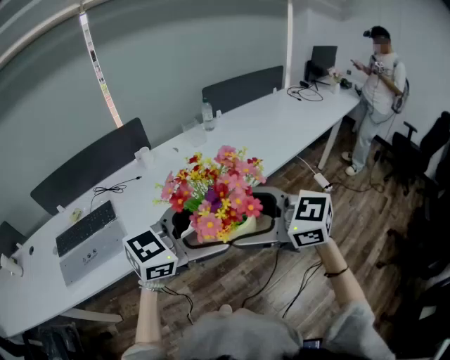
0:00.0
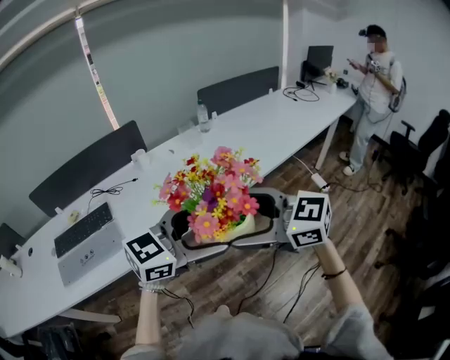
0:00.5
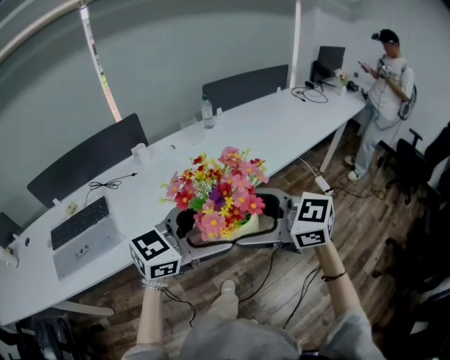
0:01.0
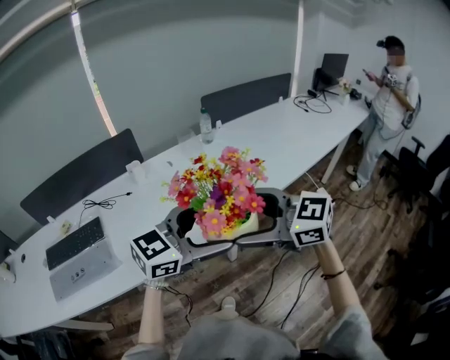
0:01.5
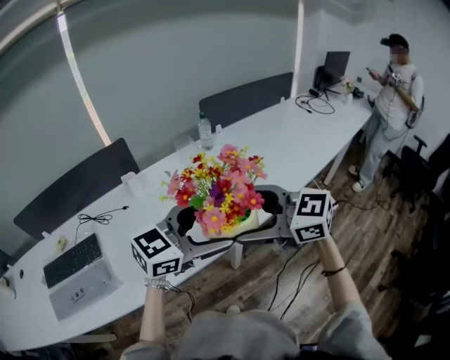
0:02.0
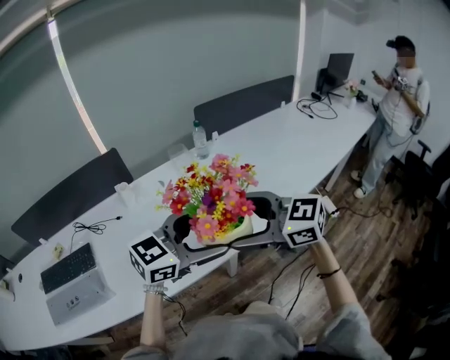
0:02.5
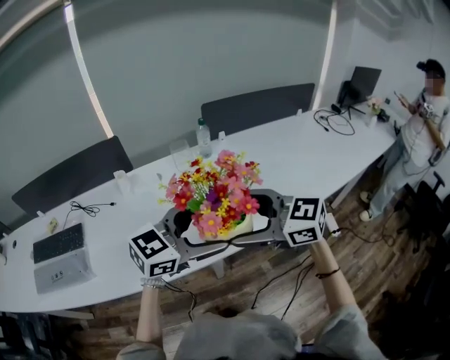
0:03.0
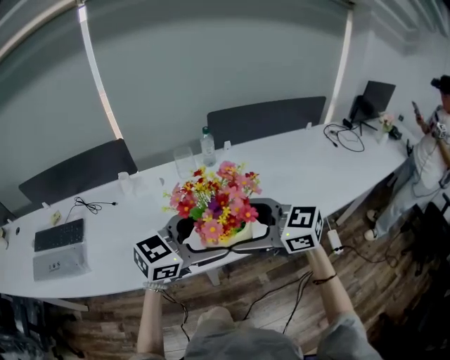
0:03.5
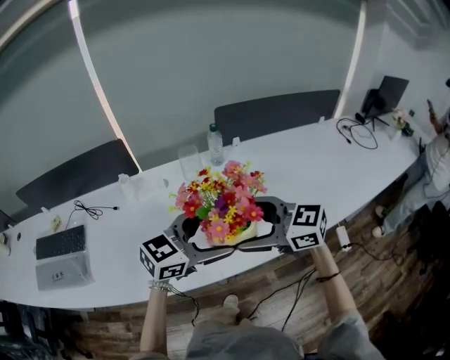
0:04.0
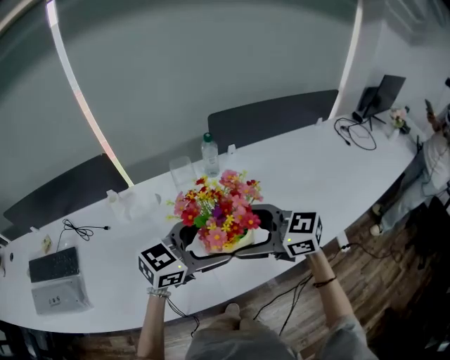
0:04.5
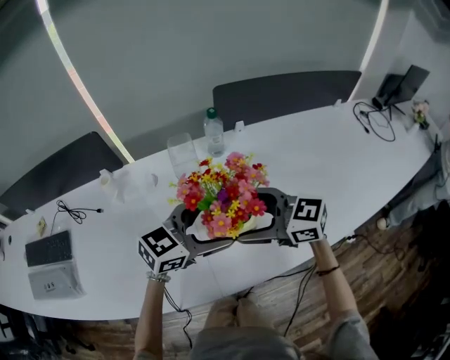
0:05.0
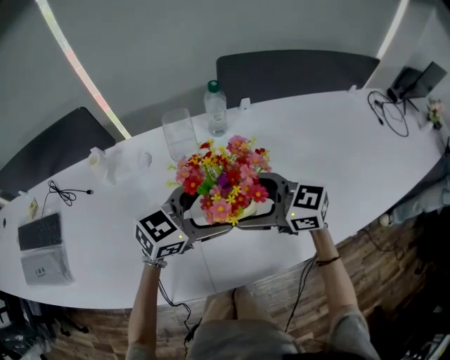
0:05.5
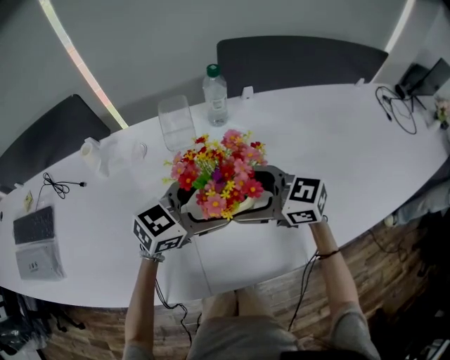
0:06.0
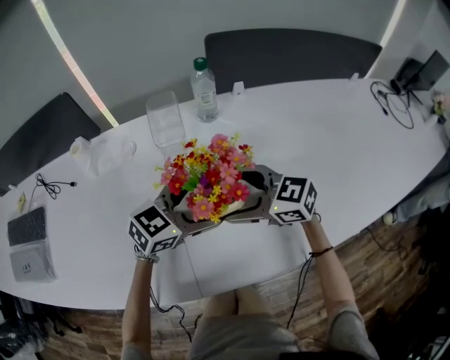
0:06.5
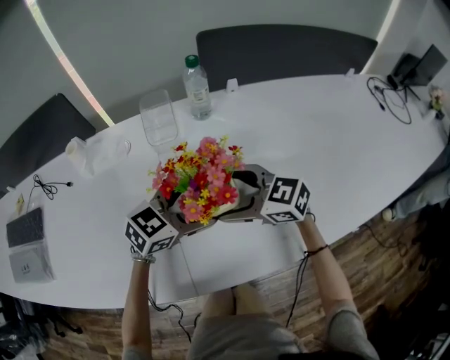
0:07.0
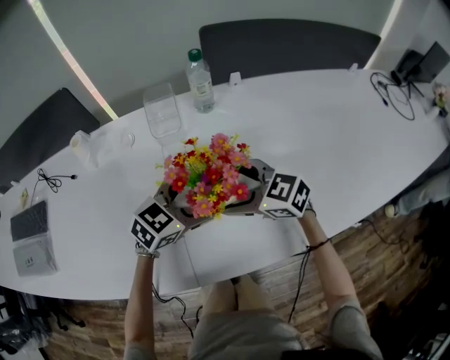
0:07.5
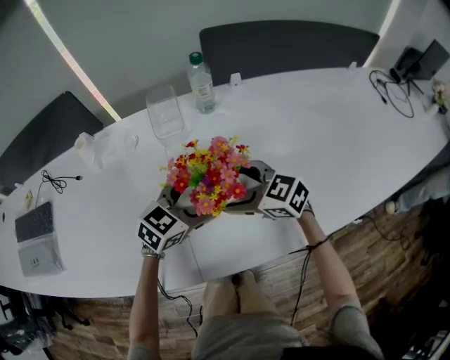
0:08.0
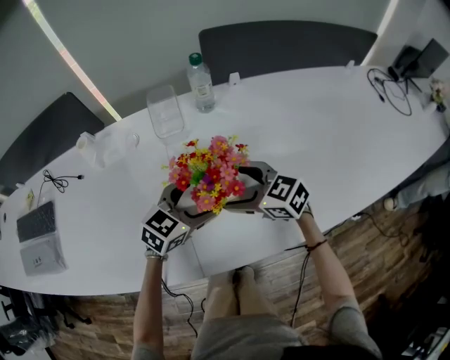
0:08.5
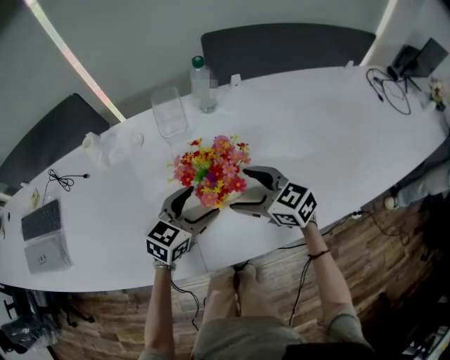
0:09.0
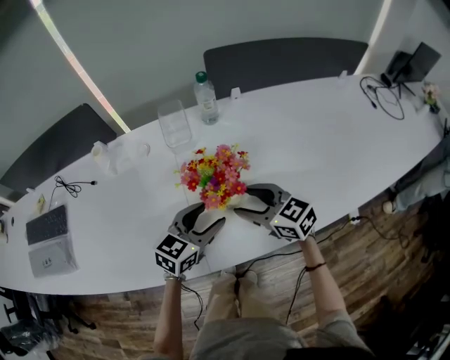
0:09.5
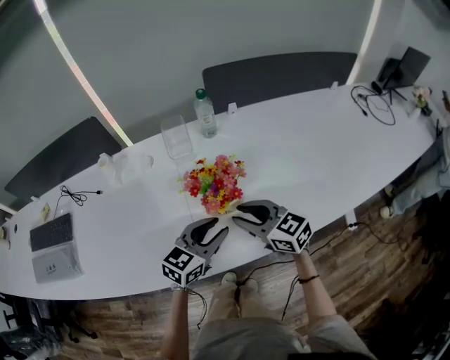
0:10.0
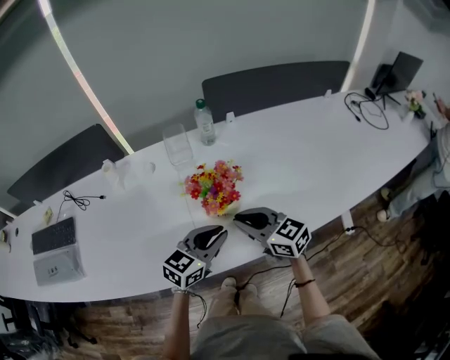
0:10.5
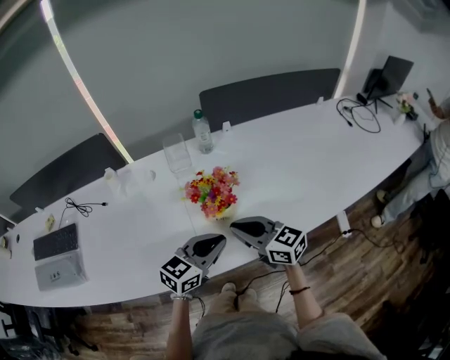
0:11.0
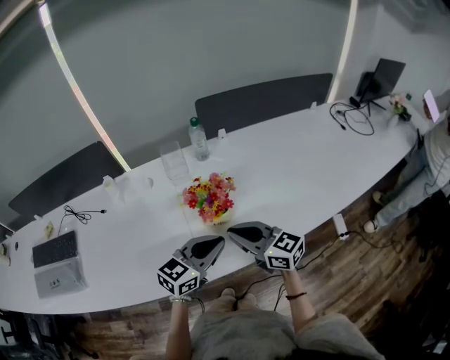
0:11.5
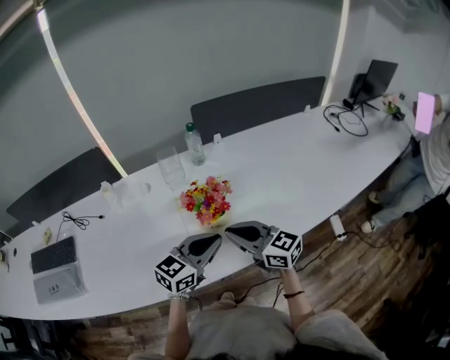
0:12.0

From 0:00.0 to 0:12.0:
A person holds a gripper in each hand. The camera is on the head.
From 0:00.0 to 0:02.0: The right gripper changes place by approximately 20 cm, while the left gripper changes place by roughly 20 cm.
From 0:02.0 to 0:04.0: The right gripper ends up approximately 20 cm from where it was. The left gripper changes place by roughly 20 cm.
From 0:04.0 to 0:06.0: Both grippers move downward, some 20 cm.
From 0:06.0 to 0:08.0: Both grippers move downward, about 5 cm.
From 0:08.0 to 0:10.0: Both grippers travel together backward and upward, some 10 cm. The right gripper closes up. Meanwhile the left gripper closes.
From 0:10.0 to 0:12.0: The two grippers go some 5 cm upward.

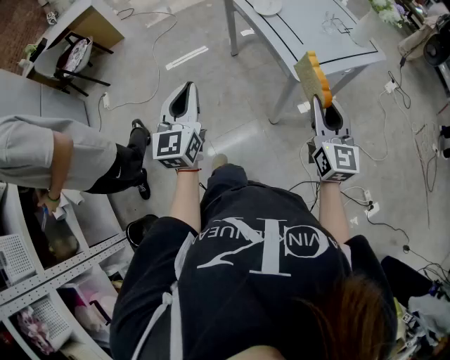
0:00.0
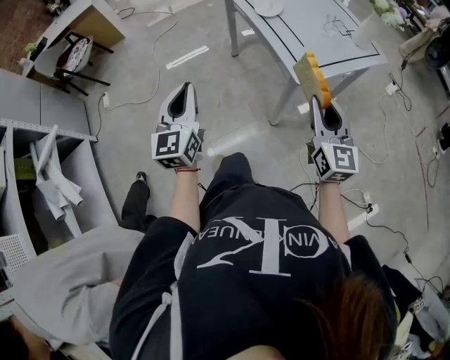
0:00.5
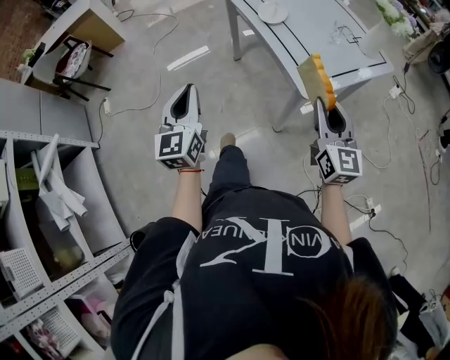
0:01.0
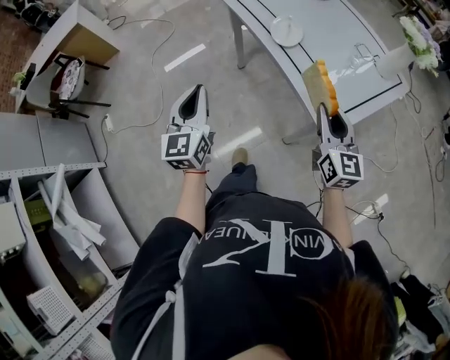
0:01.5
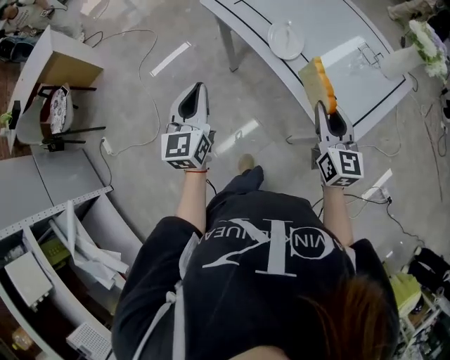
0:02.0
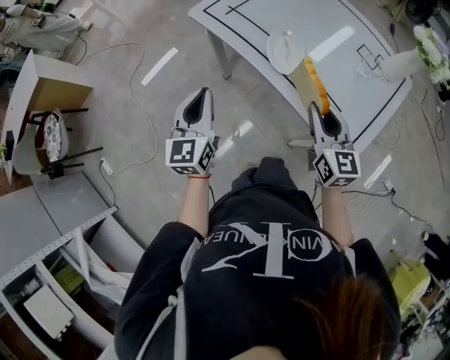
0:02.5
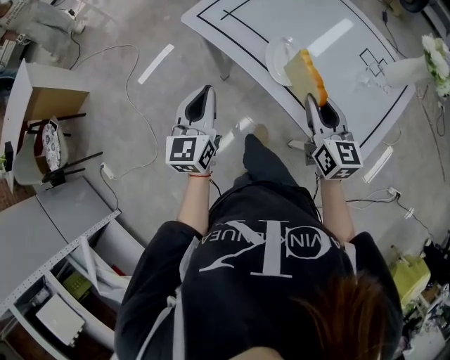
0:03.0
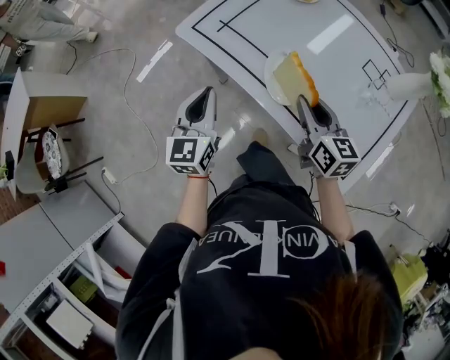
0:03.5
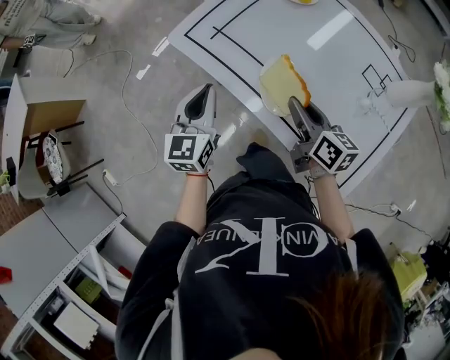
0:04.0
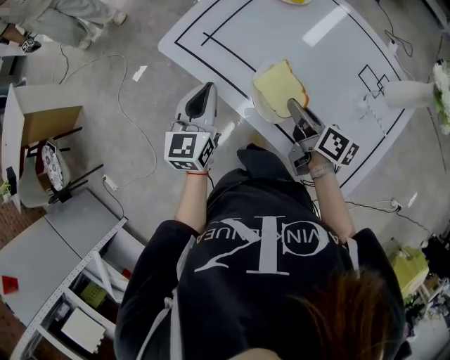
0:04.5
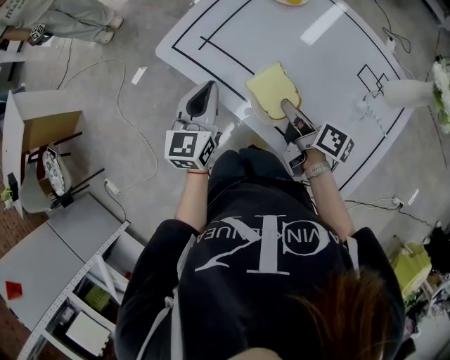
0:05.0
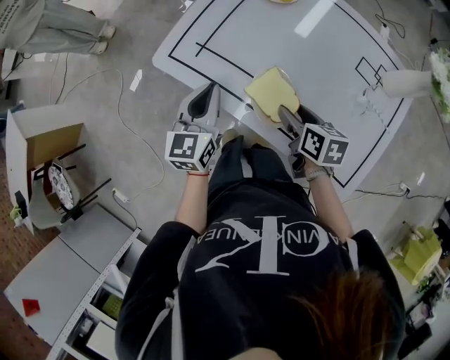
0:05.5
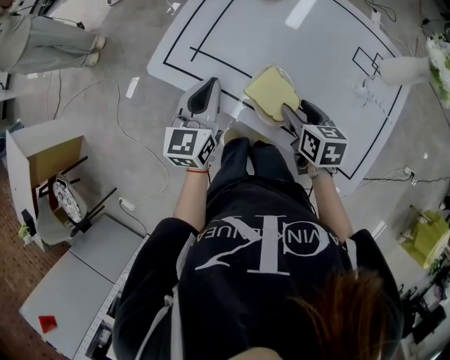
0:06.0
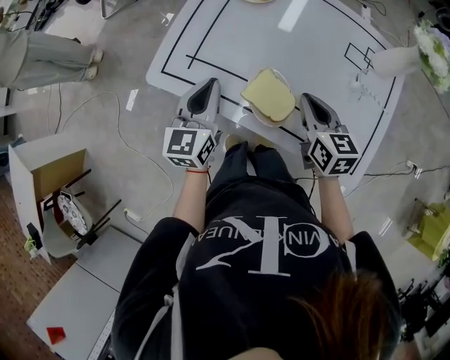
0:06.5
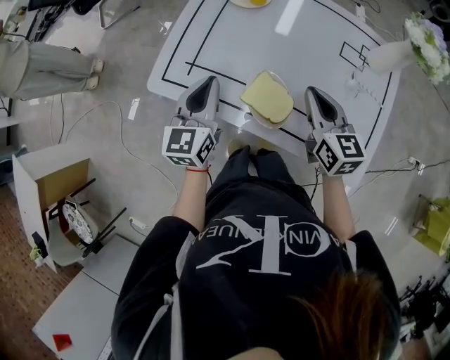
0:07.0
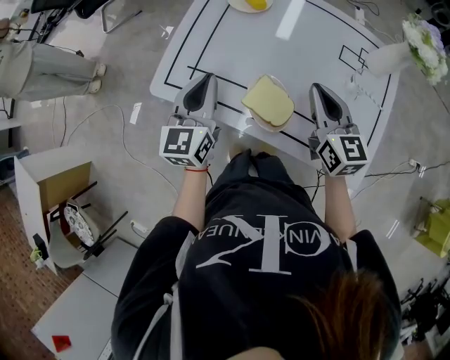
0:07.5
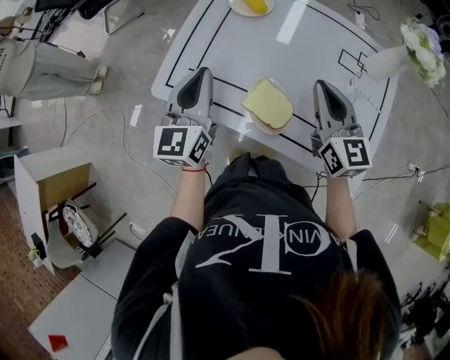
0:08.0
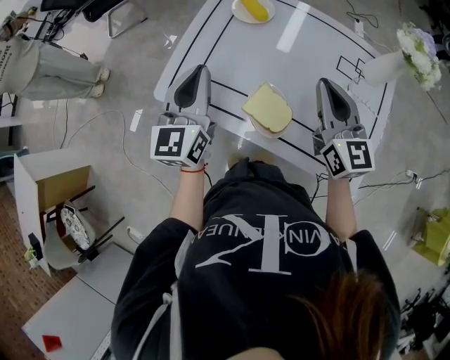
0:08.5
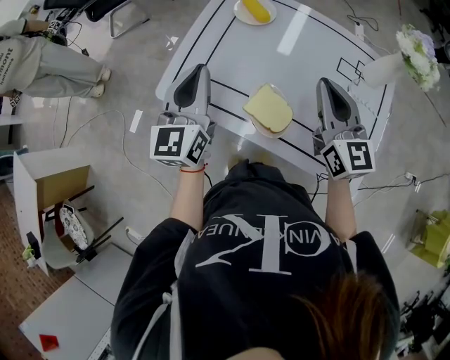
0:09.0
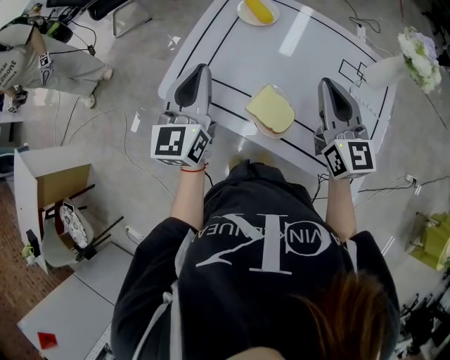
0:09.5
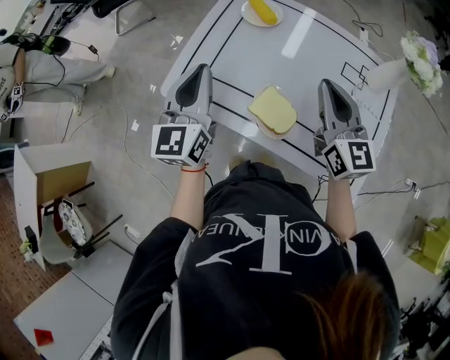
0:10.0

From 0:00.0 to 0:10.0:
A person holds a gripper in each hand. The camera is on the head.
From 0:00.0 to 0:02.0: The grippers both shift forward by approximately 35 cm.
From 0:02.0 to 0:04.0: Both grippers travel together forward, about 25 cm. The right gripper turns by some 40 degrees.
From 0:04.0 to 0:06.0: The left gripper goes some 10 cm forward, while the right gripper travels downward by approximately 5 cm, turns by roughly 30 degrees, and opens.
From 0:06.0 to 0:08.0: The right gripper shifts approximately 15 cm upward, angles its fingers upward, by approximately 40 degrees, and closes up; the left gripper shifts some 10 cm upward.
From 0:08.0 to 0:10.0: The grippers stay close to where they were, moving slightly.

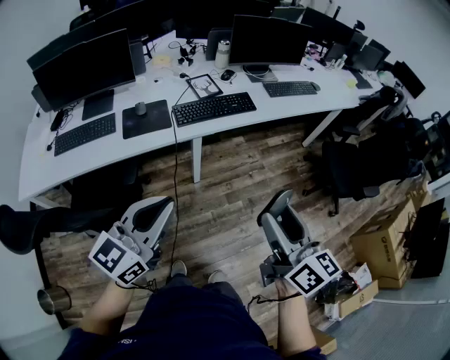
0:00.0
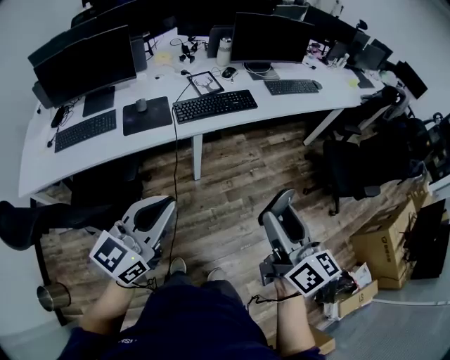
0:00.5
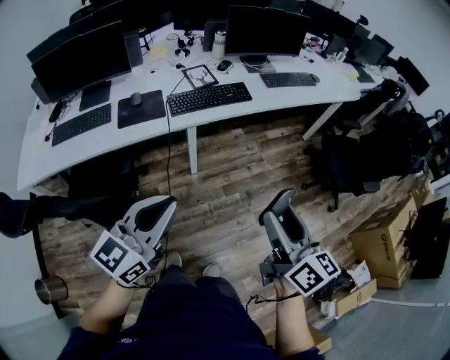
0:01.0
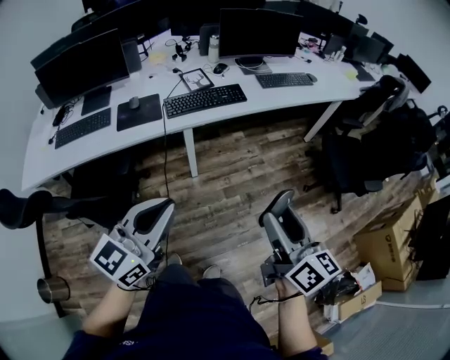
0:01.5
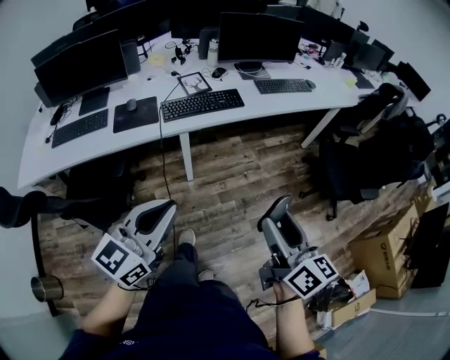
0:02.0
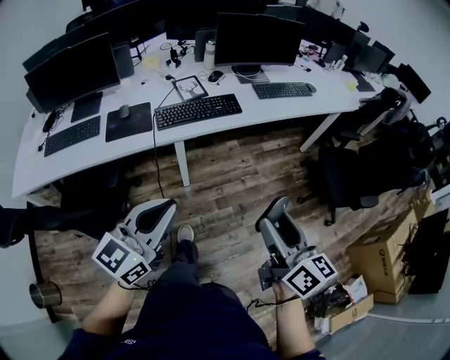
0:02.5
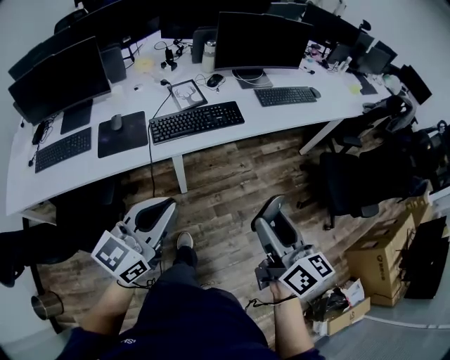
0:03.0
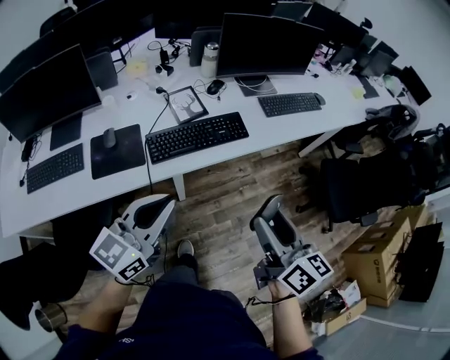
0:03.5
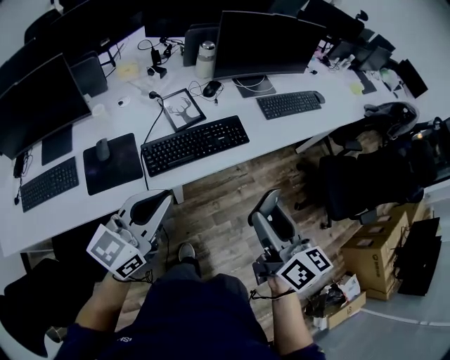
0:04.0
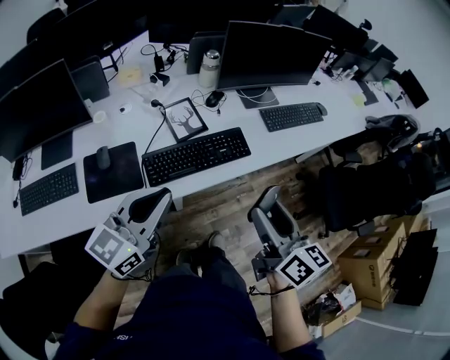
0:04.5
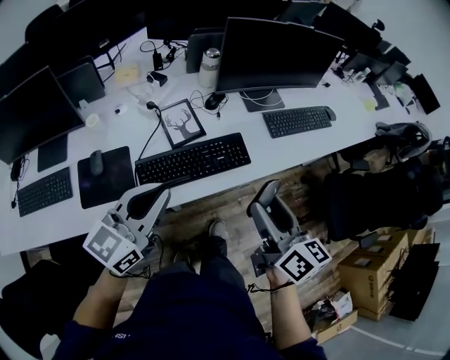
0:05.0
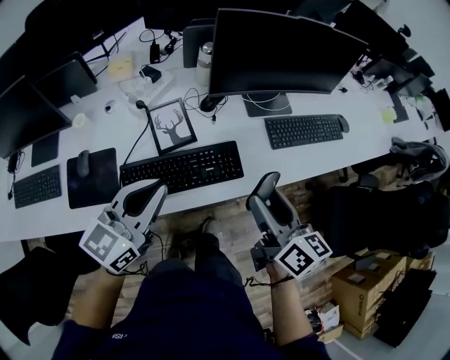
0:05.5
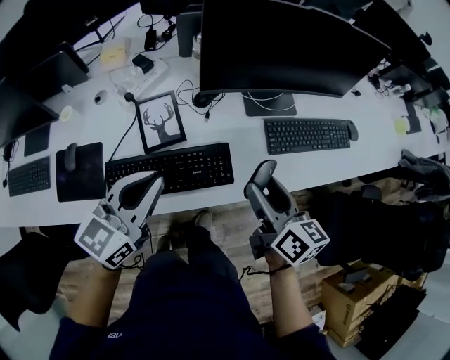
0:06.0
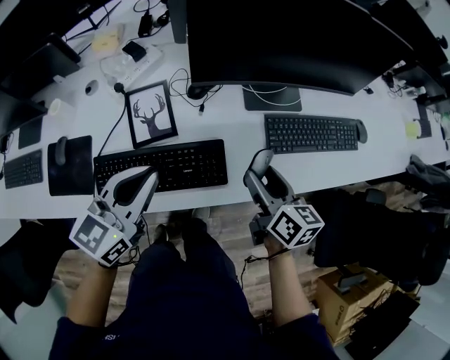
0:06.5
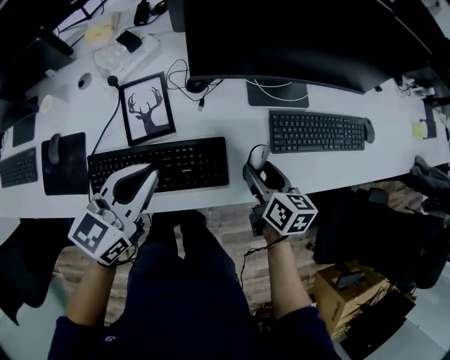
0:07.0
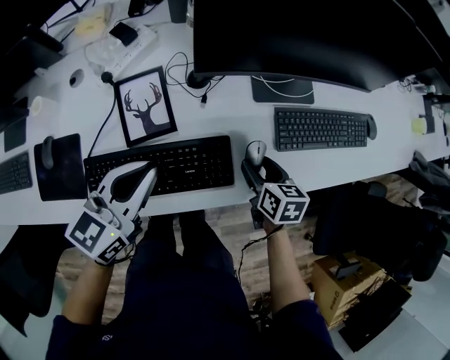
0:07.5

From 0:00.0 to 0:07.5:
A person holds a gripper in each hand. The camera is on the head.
From 0:00.0 to 0:02.0: The two grippers go some 10 cm to the right.
From 0:02.0 to 0:04.0: The left gripper moves forward, some 35 cm. The right gripper shifts roughly 35 cm forward and to the left.
From 0:04.0 to 0:05.5: Both grippers move forward, roughly 20 cm.
From 0:05.5 to 0:07.5: The right gripper goes roughly 30 cm downward and forward, and tips its fingers downward by roughly 30 degrees. Meanwhile the left gripper heads downward and forward, covering about 15 cm.
